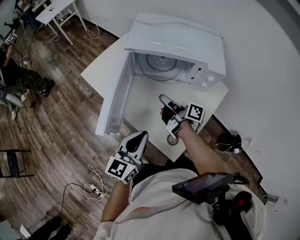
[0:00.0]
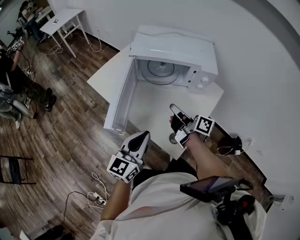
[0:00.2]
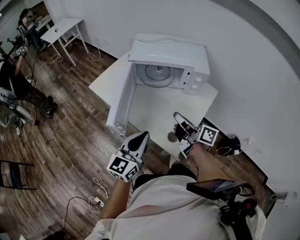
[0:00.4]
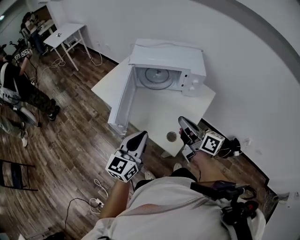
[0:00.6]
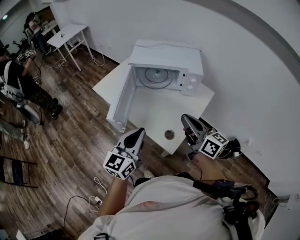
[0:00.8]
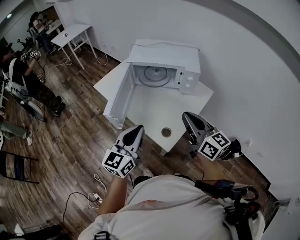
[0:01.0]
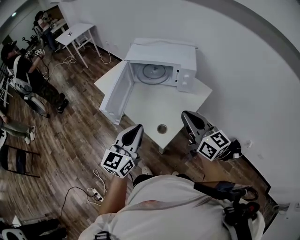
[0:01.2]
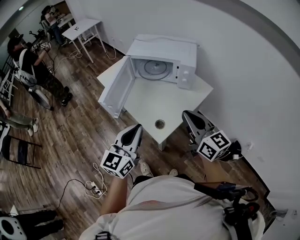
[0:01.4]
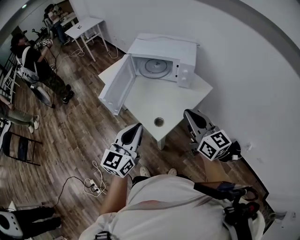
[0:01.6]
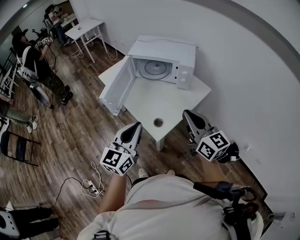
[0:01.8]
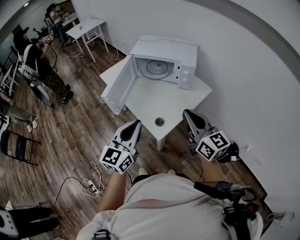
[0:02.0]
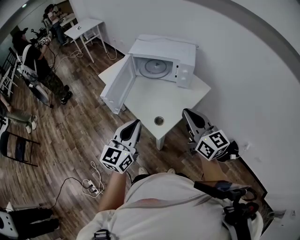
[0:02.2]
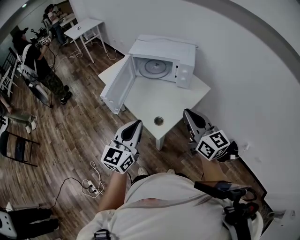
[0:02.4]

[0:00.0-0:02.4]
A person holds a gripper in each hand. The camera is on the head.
0:00.0 to 0:01.2: The right gripper moves backward, upward and to the right, approximately 40 cm, twists approximately 60 degrees counterclockwise, seen from behind, and closes its fingers. Meanwhile the left gripper moves backward and upward, some 20 cm.
0:01.2 to 0:02.4: The grippers both shift backward by about 5 cm.

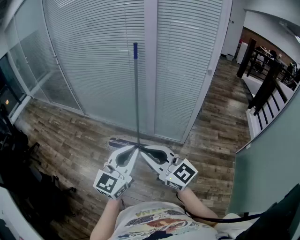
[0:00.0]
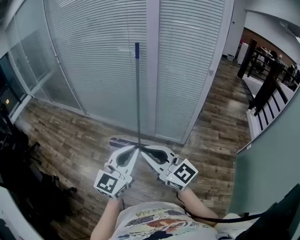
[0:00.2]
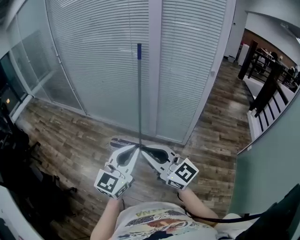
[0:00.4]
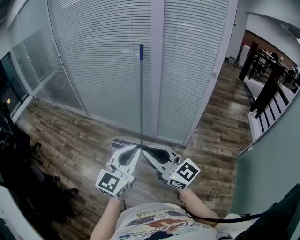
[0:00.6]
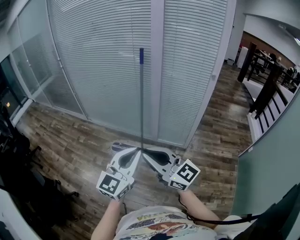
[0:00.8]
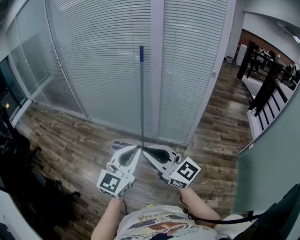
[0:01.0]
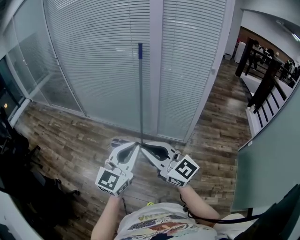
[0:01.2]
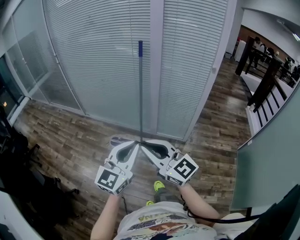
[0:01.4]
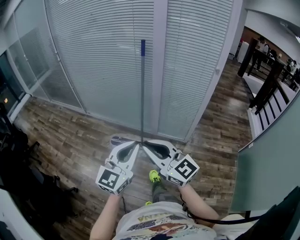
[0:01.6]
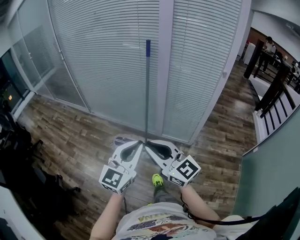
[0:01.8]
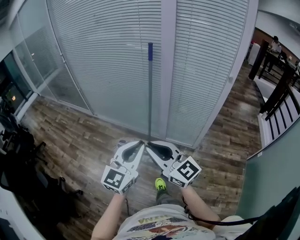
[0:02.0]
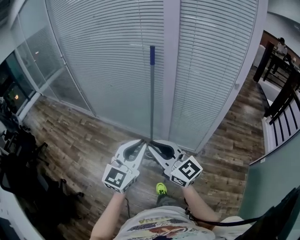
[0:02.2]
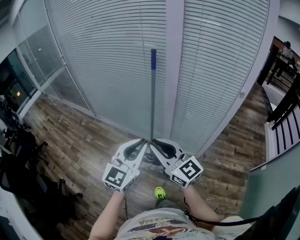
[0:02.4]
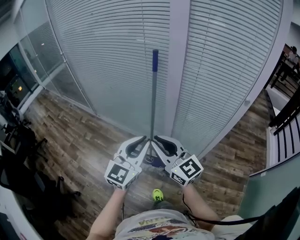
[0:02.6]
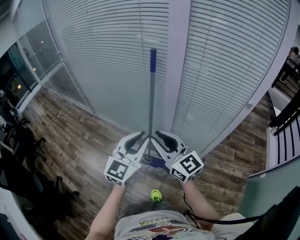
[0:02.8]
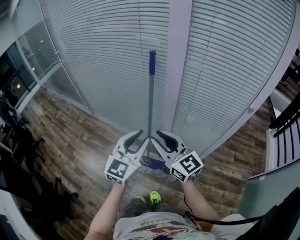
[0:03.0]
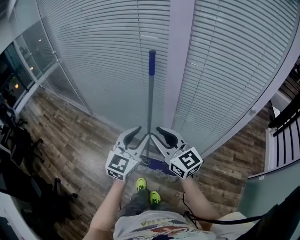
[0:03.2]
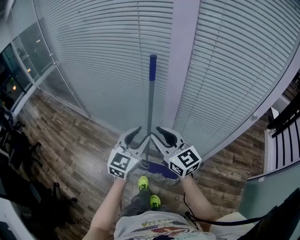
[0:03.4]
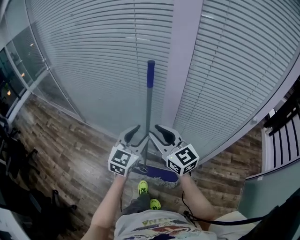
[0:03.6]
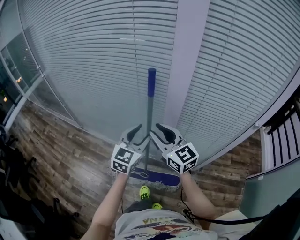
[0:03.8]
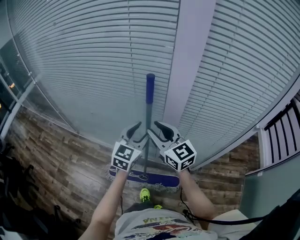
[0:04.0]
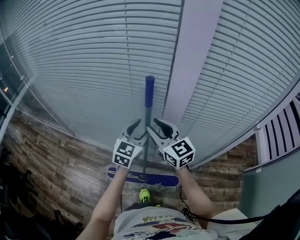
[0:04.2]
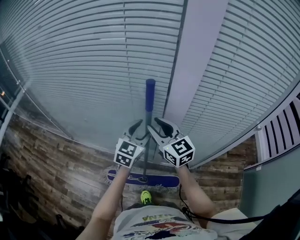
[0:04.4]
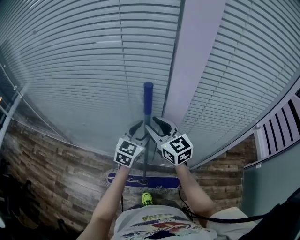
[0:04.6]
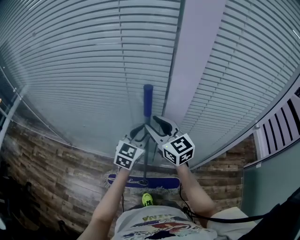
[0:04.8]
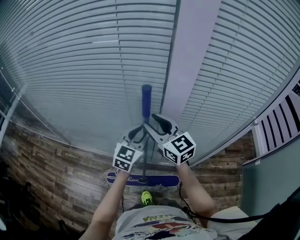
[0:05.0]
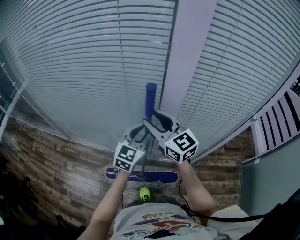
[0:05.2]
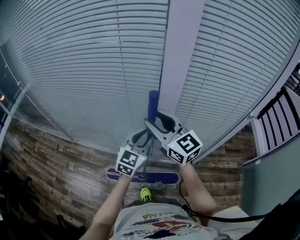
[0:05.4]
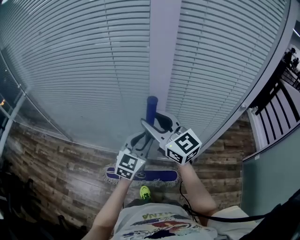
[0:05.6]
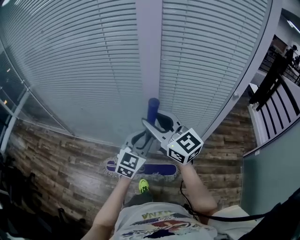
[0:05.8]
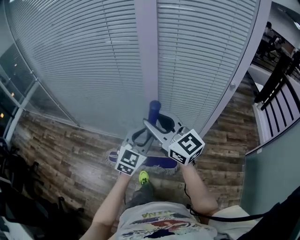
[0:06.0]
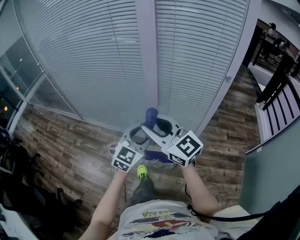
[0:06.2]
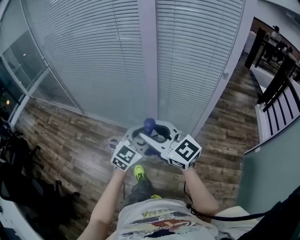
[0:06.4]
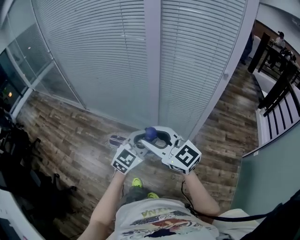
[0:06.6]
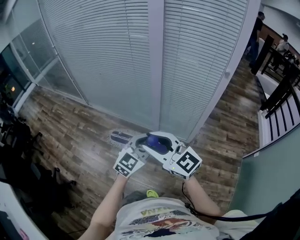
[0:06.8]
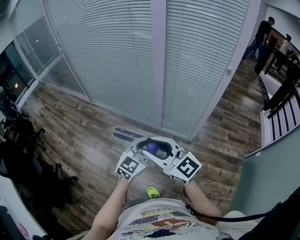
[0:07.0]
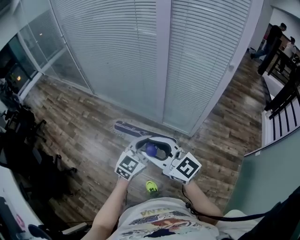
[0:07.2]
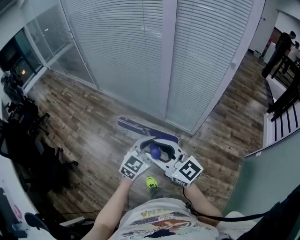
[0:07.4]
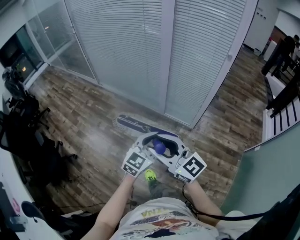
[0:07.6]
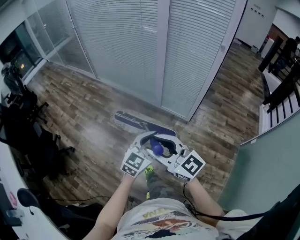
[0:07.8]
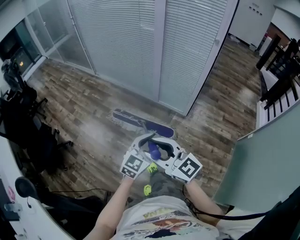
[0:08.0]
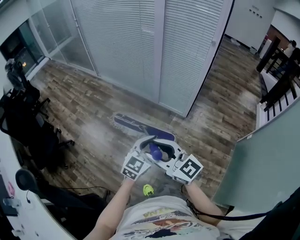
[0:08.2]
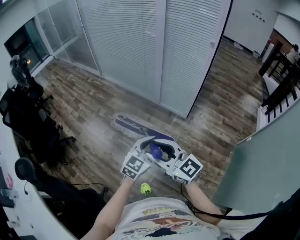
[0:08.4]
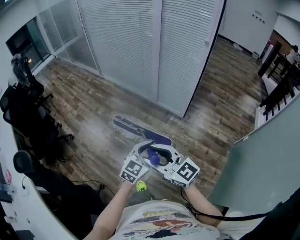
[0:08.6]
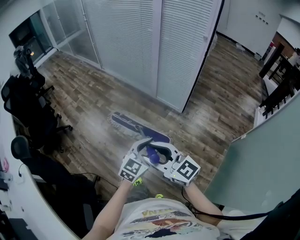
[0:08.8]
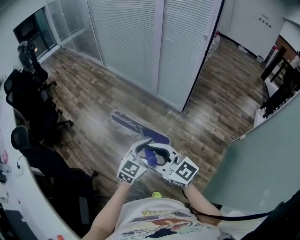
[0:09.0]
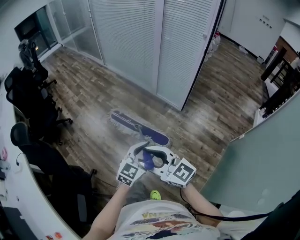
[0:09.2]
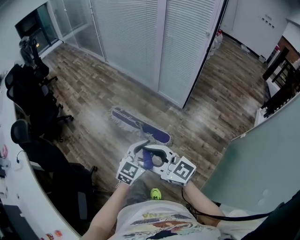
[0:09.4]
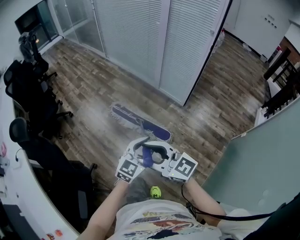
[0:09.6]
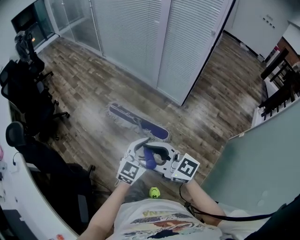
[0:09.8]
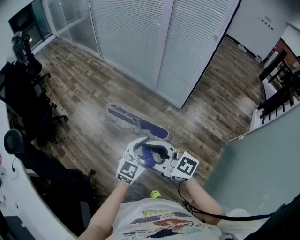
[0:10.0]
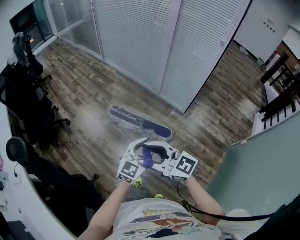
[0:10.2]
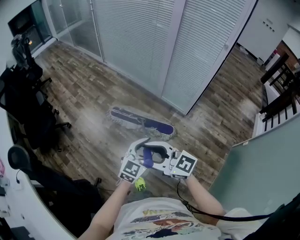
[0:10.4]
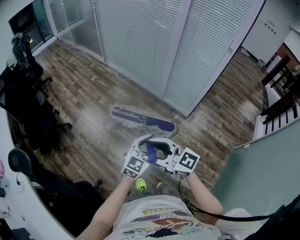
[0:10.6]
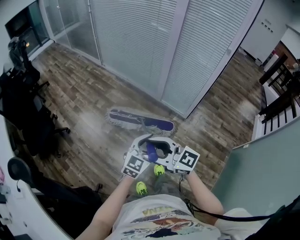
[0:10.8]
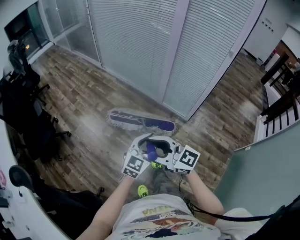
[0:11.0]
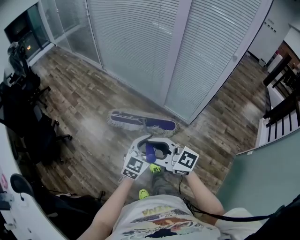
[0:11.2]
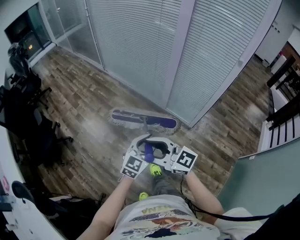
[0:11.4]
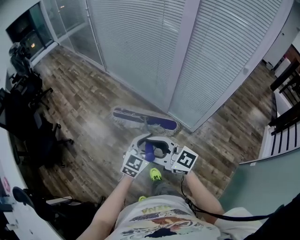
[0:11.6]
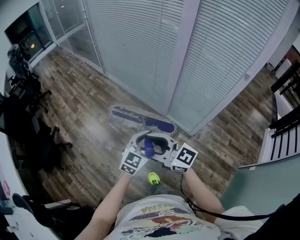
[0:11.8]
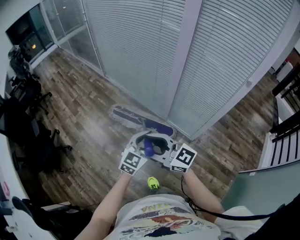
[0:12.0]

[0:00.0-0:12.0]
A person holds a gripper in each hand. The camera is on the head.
0:00.0 to 0:01.6: The left gripper travels to the left by roughly 5 cm, while the right gripper ends up approximately 5 cm from where it was.
0:01.6 to 0:03.0: Both grippers travel together forward, some 40 cm.
0:03.0 to 0:04.4: The two grippers go approximately 35 cm forward. The left gripper opens, while the right gripper changes its angle by roughly 20 degrees.
0:04.4 to 0:06.0: The right gripper is displaced backward by some 30 cm, while the left gripper is displaced backward and to the right by roughly 35 cm, and closes its fingers.
0:06.0 to 0:07.6: The pair of grippers is taken backward, roughly 50 cm. The right gripper turns by approximately 20 degrees.
0:07.6 to 0:09.0: Both grippers are carried backward, approximately 40 cm.
0:09.0 to 0:10.4: Both grippers travel together forward and to the left, roughly 20 cm.
0:10.4 to 0:12.0: The two grippers travel together, forward, roughly 40 cm.

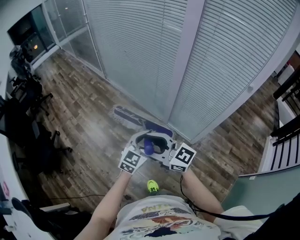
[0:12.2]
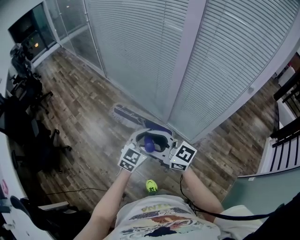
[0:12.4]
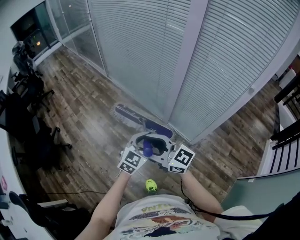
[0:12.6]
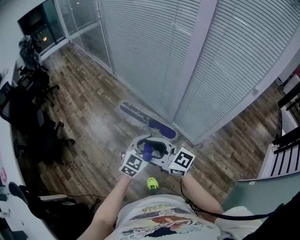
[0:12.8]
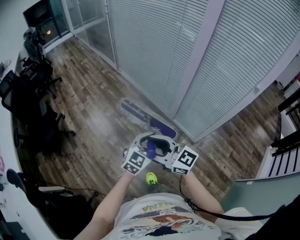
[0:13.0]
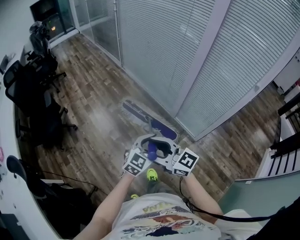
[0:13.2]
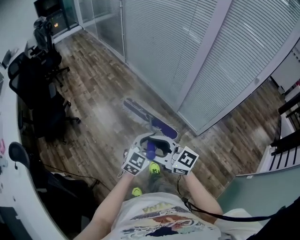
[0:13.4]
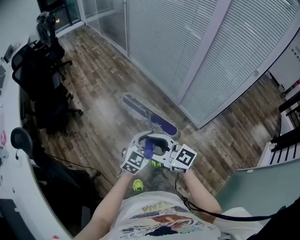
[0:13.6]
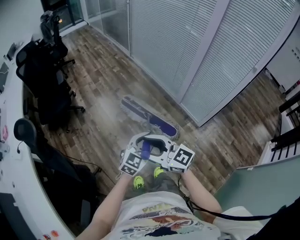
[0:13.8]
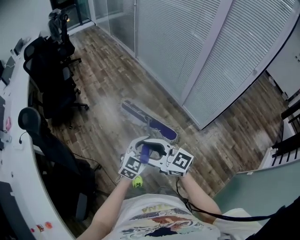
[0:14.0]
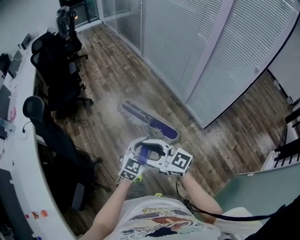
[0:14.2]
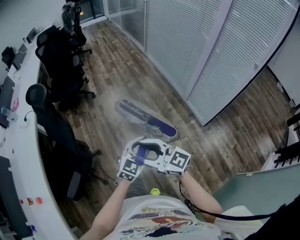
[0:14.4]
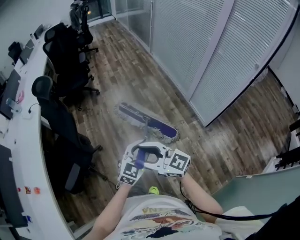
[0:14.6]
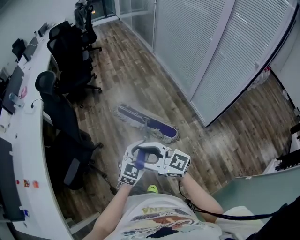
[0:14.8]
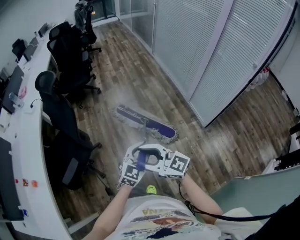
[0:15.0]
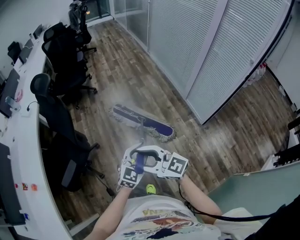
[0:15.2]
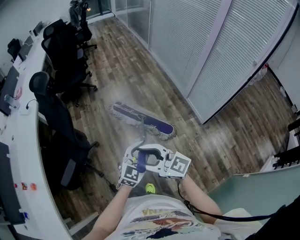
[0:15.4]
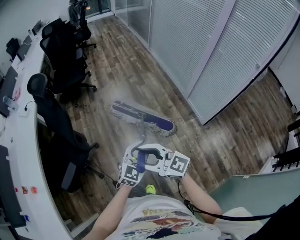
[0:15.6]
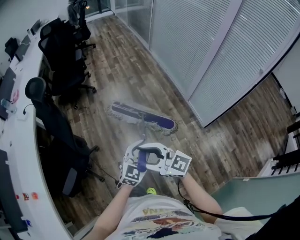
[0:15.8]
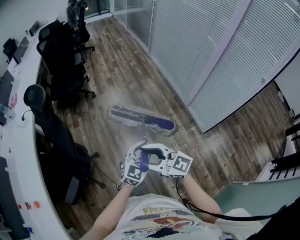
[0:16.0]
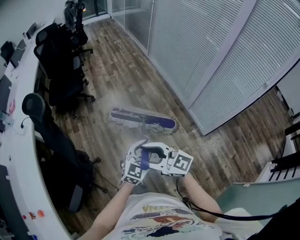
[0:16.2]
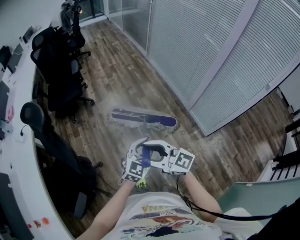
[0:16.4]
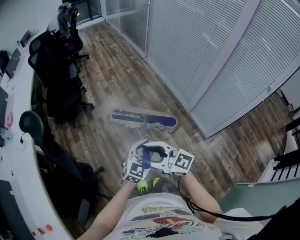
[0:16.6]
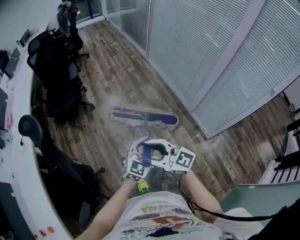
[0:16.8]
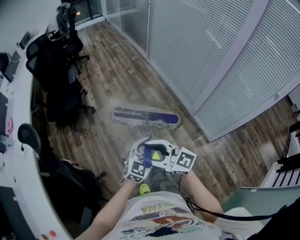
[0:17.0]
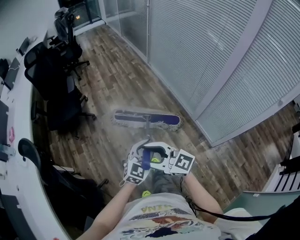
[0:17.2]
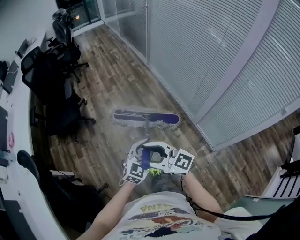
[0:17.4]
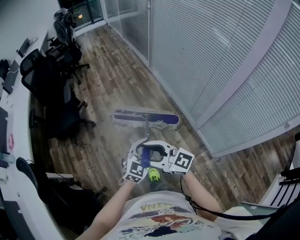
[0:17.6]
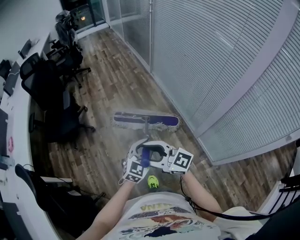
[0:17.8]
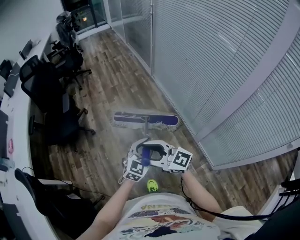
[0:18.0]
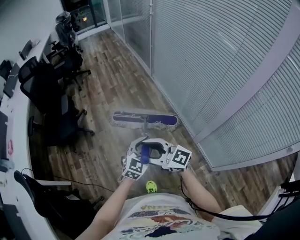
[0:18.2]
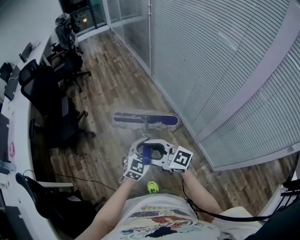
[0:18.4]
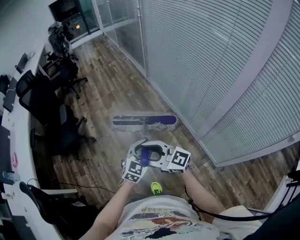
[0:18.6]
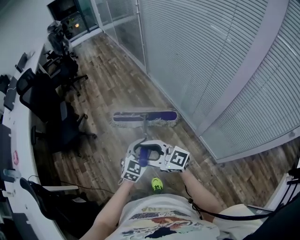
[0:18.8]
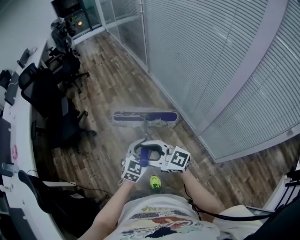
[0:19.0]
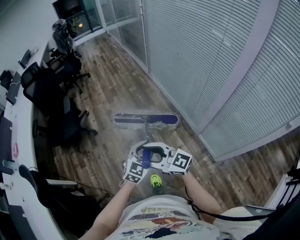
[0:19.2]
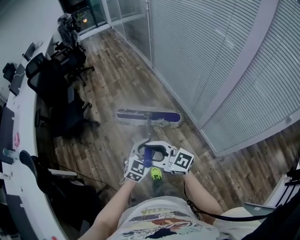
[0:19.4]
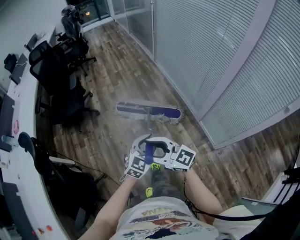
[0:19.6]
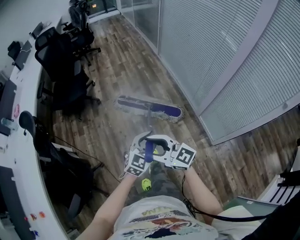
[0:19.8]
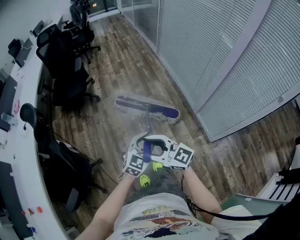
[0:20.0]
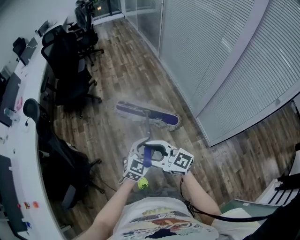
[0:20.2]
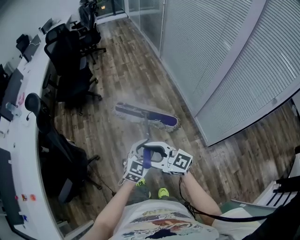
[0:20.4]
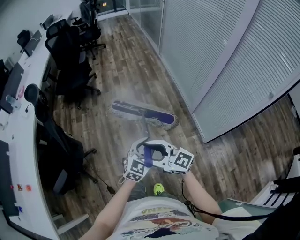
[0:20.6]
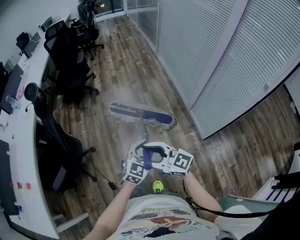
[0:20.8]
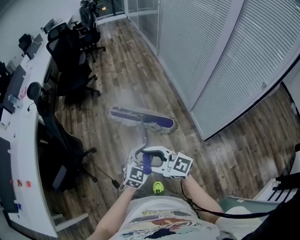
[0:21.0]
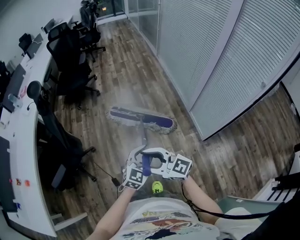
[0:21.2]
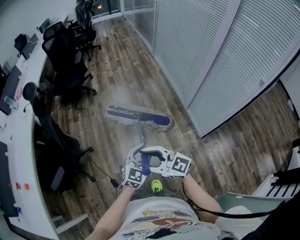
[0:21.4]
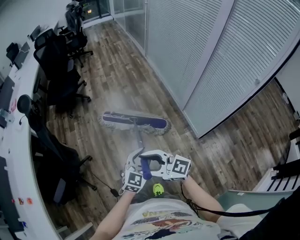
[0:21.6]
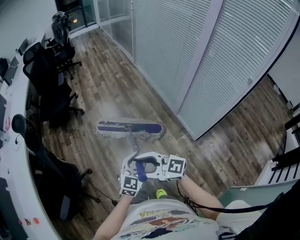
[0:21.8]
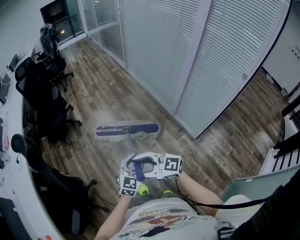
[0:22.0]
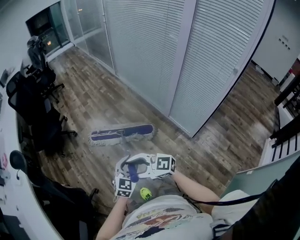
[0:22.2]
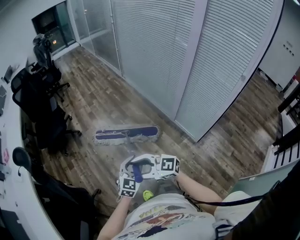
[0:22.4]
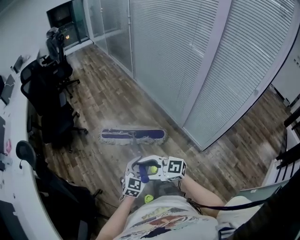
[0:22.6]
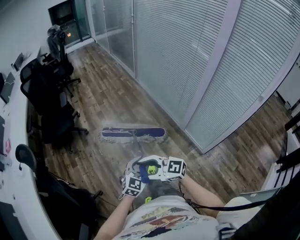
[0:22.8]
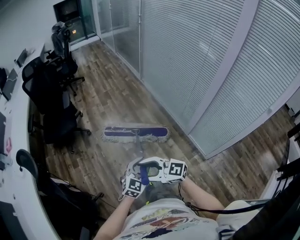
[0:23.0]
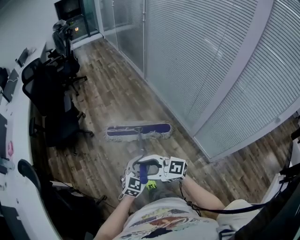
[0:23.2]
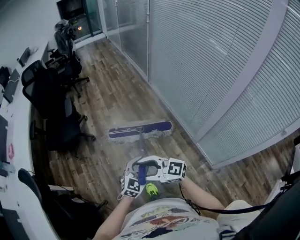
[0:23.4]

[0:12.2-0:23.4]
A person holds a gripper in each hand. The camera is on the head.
0:12.2 to 0:13.8: The two grippers travel together, backward and to the left, some 40 cm.
0:13.8 to 0:15.4: The grippers both shift backward by roughly 30 cm. The left gripper rotates roughly 20 degrees.
0:15.4 to 0:17.0: The pair of grippers is taken forward, about 40 cm.
0:17.0 to 0:18.6: The two grippers go some 40 cm forward and to the right.
0:18.6 to 0:20.2: Both grippers are carried backward, some 50 cm.
0:20.2 to 0:21.8: Both grippers move backward, roughly 10 cm.
0:21.8 to 0:23.4: Both grippers are carried forward, approximately 40 cm.
